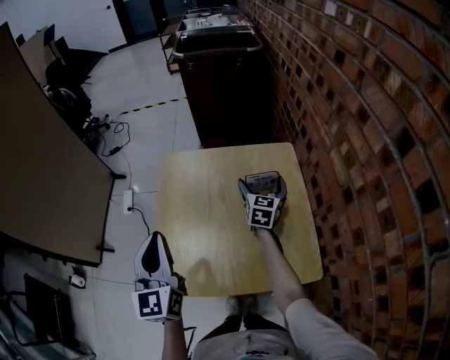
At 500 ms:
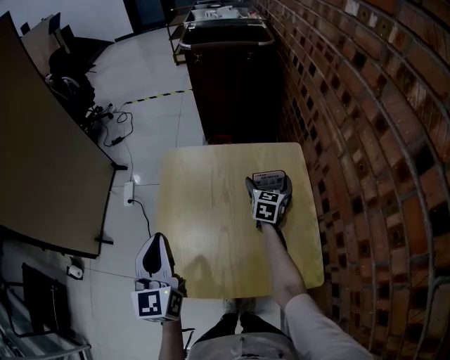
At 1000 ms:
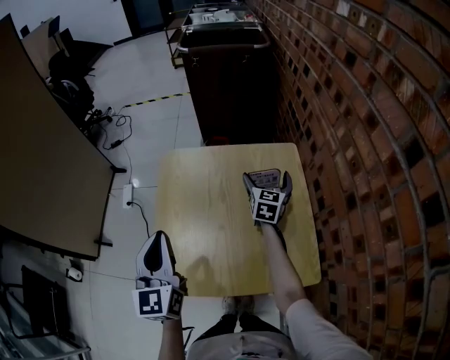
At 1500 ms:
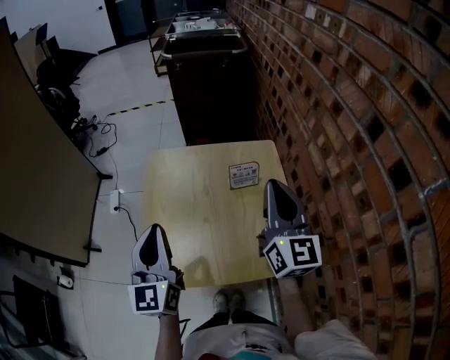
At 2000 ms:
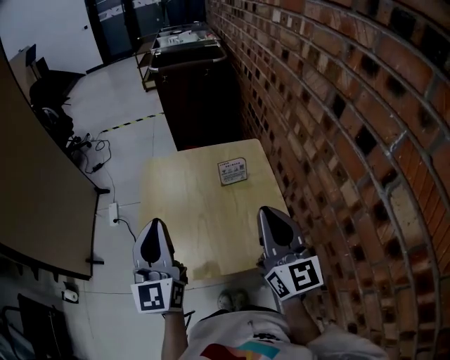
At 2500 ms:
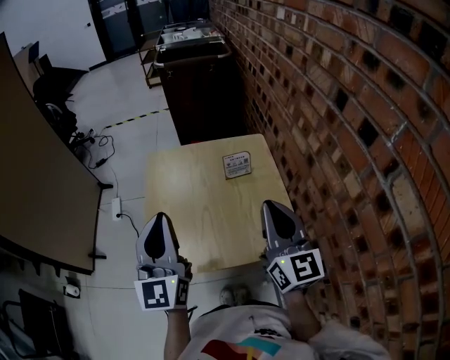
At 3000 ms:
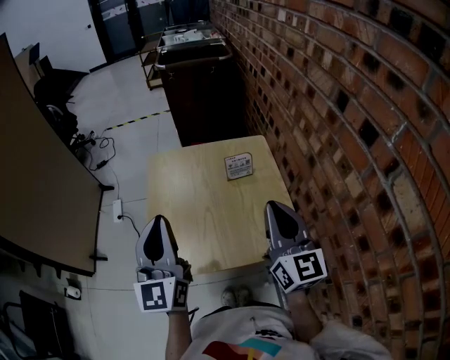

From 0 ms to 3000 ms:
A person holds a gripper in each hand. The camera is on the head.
From 0 ms to 1500 ms: The right gripper travels upward and backward by approximately 30 cm, turns by approximately 30 degrees, and closes its fingers.
From 1500 ms to 3000 ms: The left gripper is displaced upward and backward by some 10 cm. Meanwhile the right gripper goes approximately 10 cm backward.

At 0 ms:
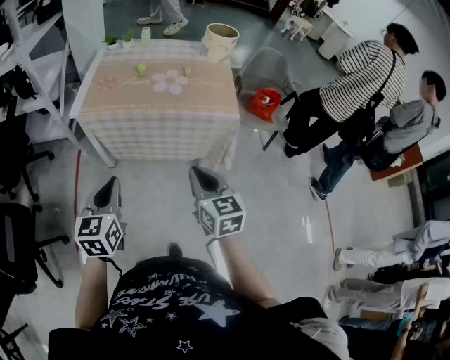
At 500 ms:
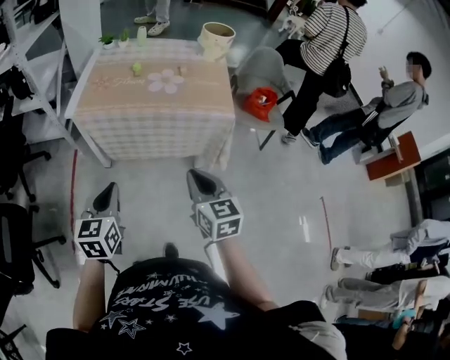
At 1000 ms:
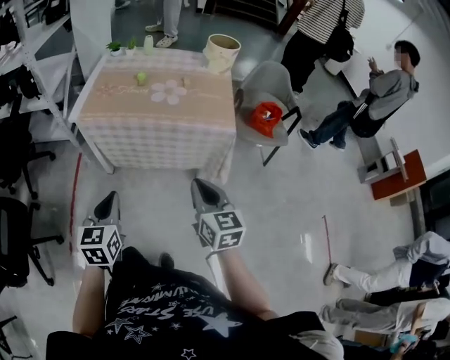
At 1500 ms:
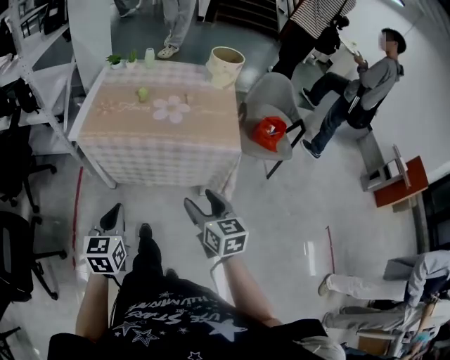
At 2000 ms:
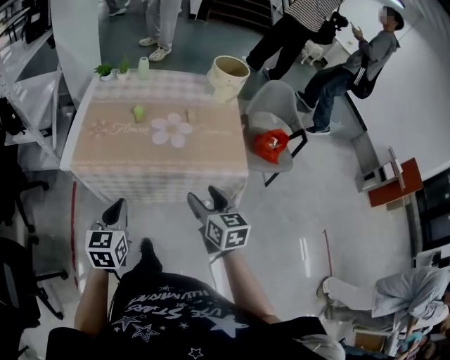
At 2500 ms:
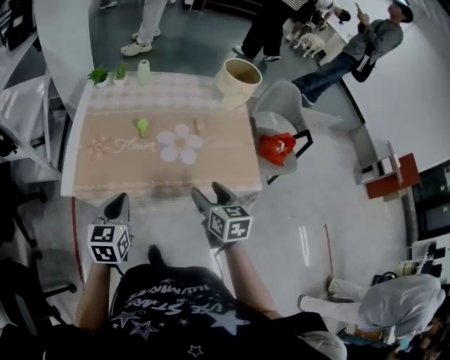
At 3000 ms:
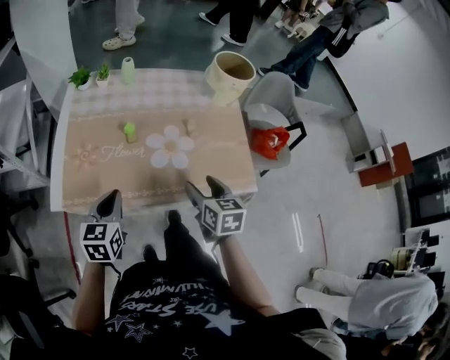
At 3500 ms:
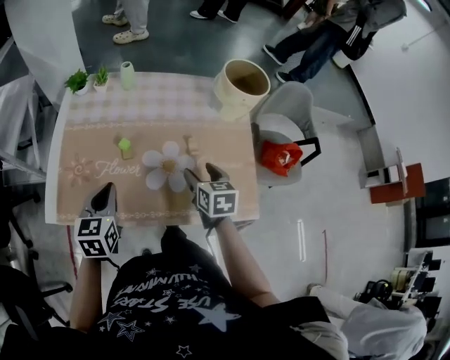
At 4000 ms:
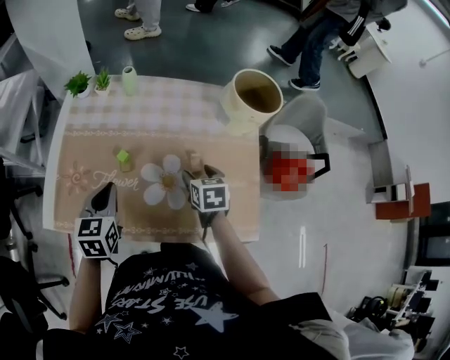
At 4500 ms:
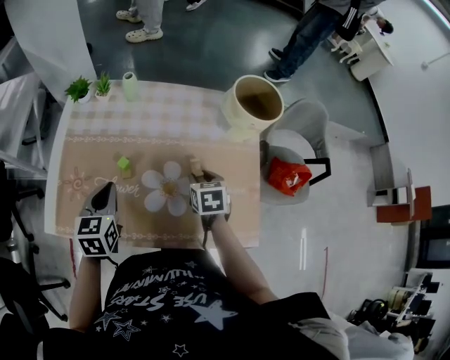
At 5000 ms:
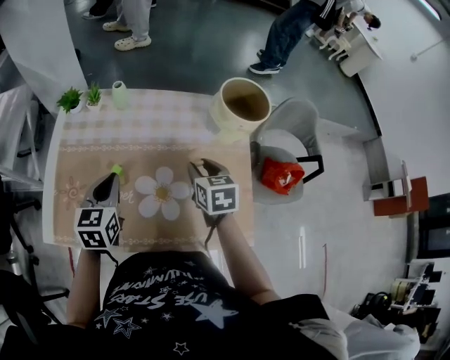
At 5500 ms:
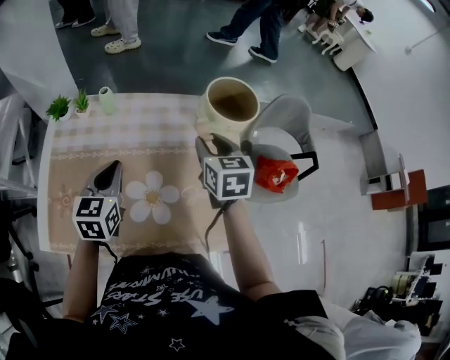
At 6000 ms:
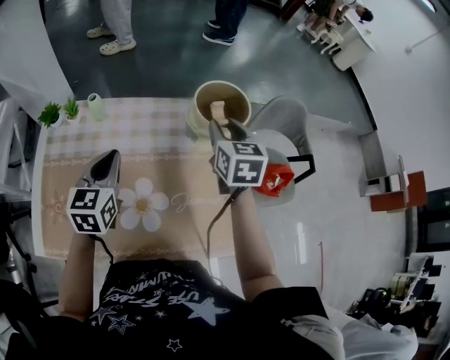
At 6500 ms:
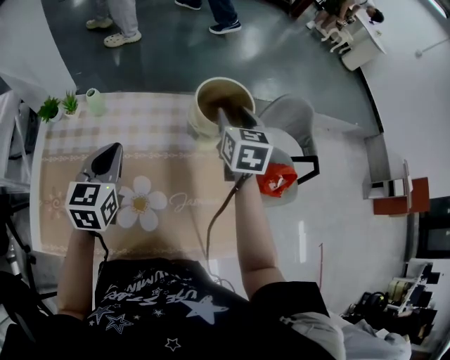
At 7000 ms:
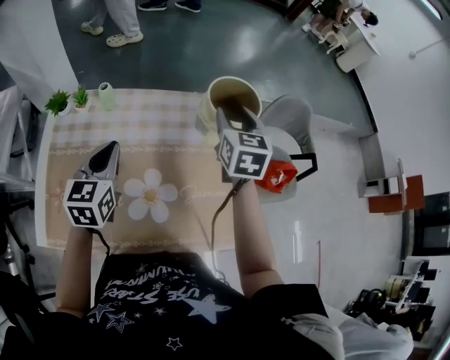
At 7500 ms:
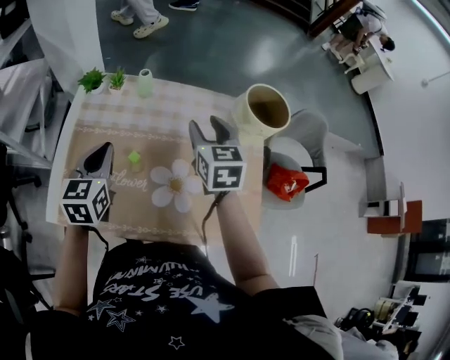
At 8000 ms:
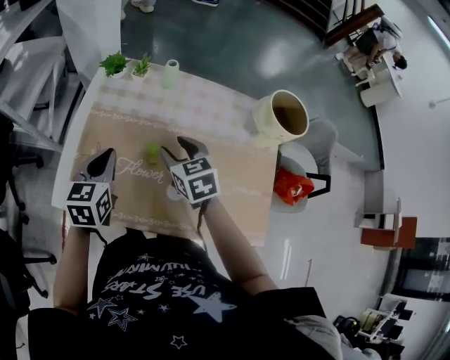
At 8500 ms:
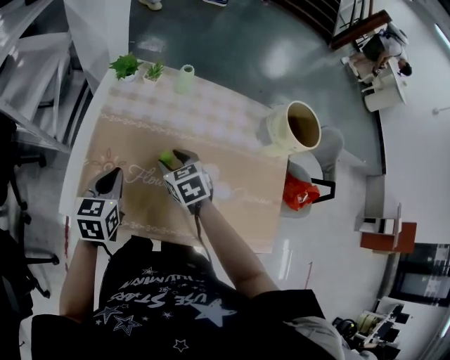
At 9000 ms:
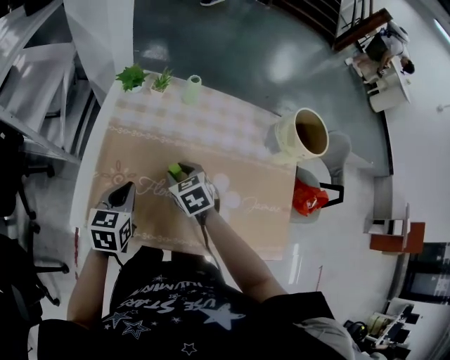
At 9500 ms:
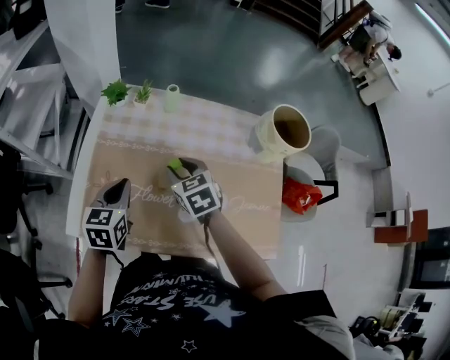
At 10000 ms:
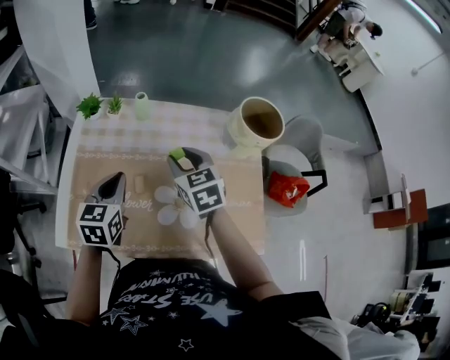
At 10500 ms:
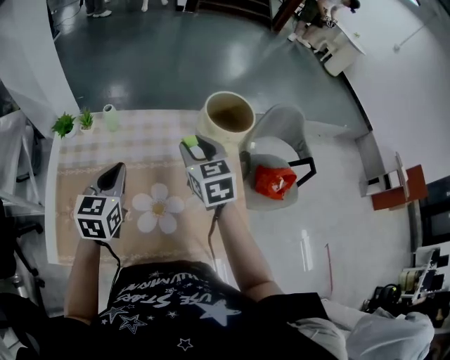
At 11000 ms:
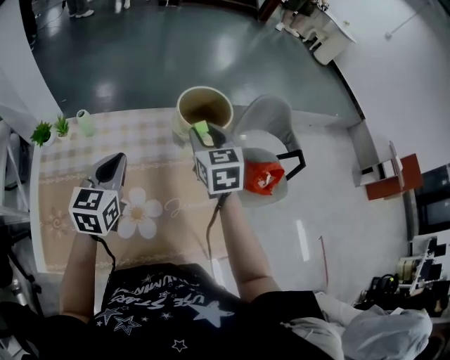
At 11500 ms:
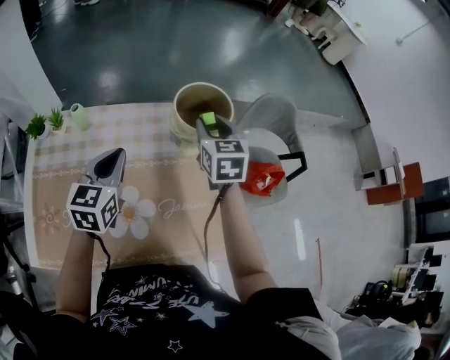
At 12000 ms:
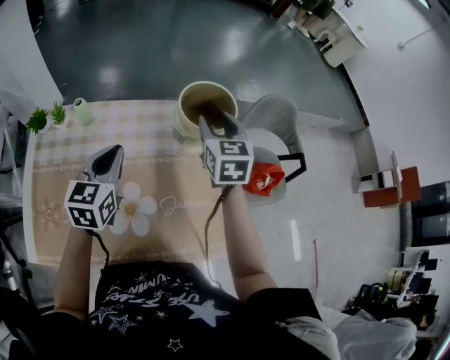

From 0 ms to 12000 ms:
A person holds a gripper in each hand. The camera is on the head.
From 0 ms to 2000 ms: Both grippers travel together forward, about 20 cm. The right gripper opens up.
From 2000 ms to 4000 ms: The two grippers go approximately 35 cm forward. The right gripper swivels some 20 degrees.
From 4000 ms to 6000 ms: The right gripper goes approximately 30 cm upward, forward and to the right, swivels roughly 20 degrees, and closes; the left gripper goes roughly 20 cm forward, to the right and upward.
From 6000 ms to 8000 ms: The right gripper shifts about 30 cm to the left, and swivels about 30 degrees, while the left gripper moves to the left and backward, some 25 cm.
From 8000 ms to 10000 ms: The left gripper is displaced to the right by about 10 cm, while the right gripper is displaced to the right and upward by about 10 cm.
From 10000 ms to 12000 ms: Both grippers travel together to the right and forward, approximately 25 cm. The right gripper rotates some 30 degrees.

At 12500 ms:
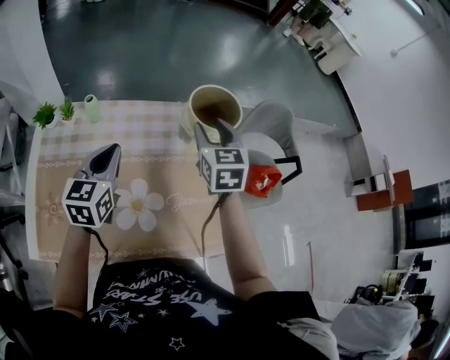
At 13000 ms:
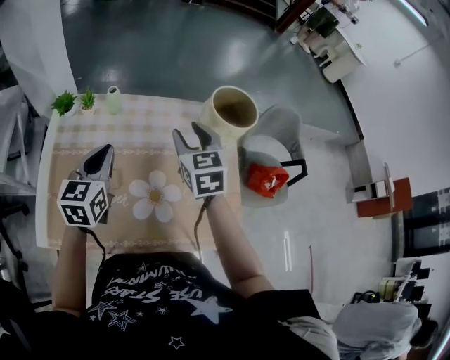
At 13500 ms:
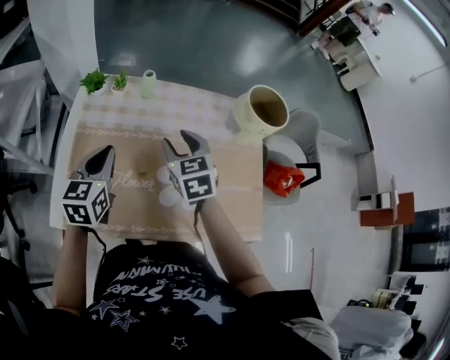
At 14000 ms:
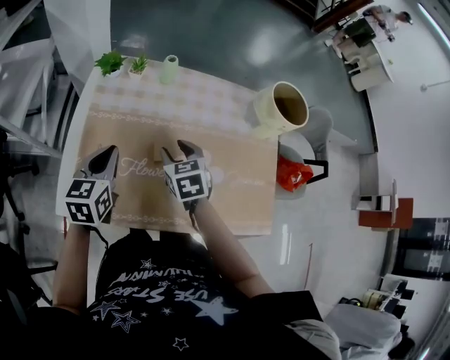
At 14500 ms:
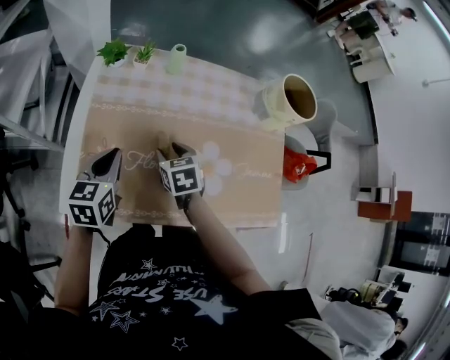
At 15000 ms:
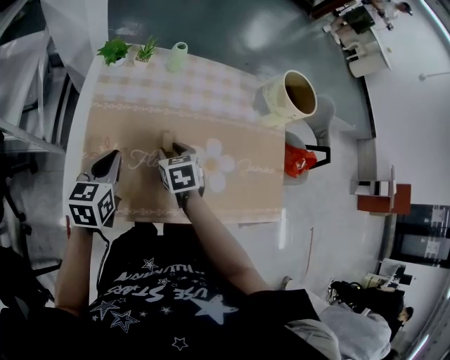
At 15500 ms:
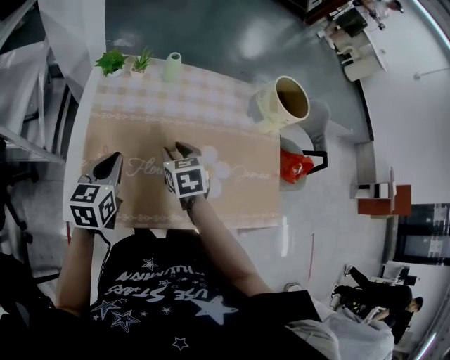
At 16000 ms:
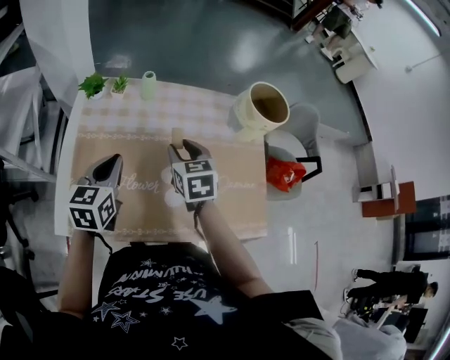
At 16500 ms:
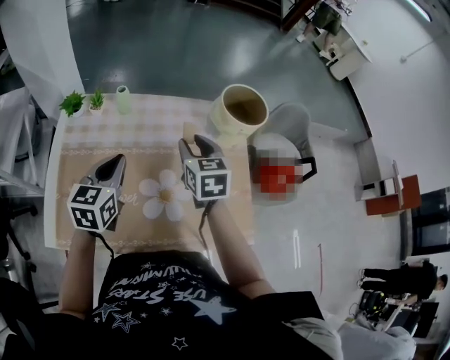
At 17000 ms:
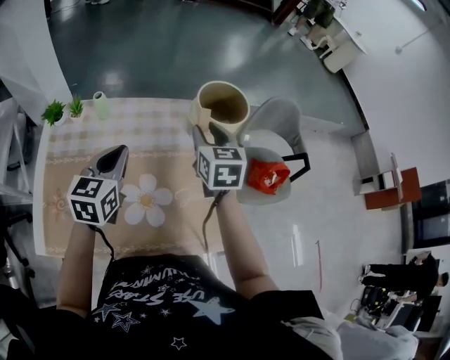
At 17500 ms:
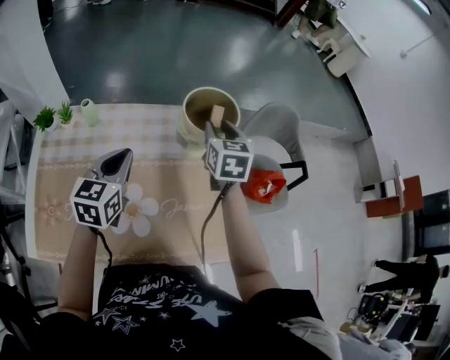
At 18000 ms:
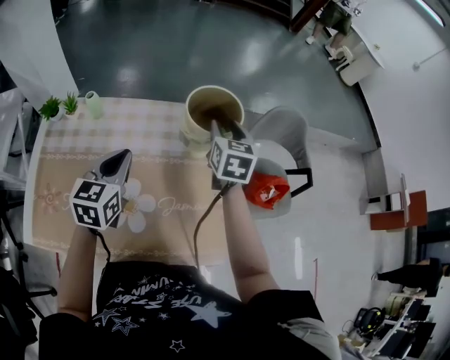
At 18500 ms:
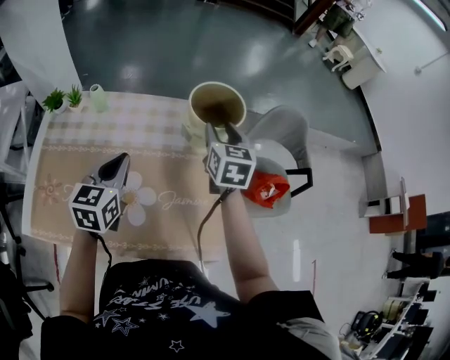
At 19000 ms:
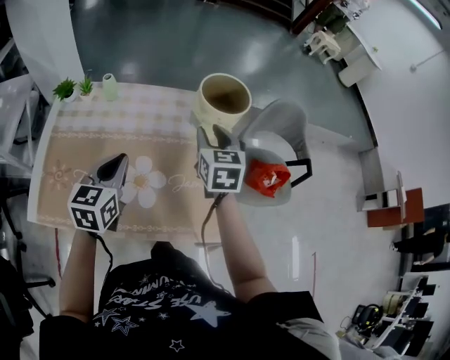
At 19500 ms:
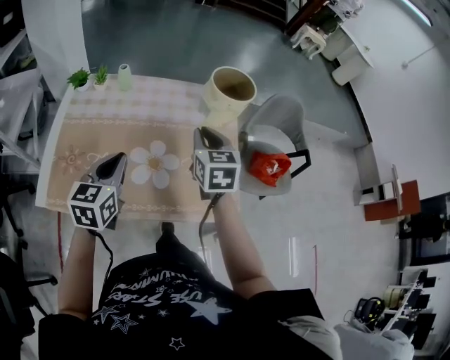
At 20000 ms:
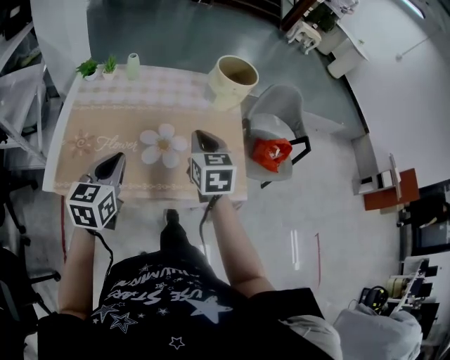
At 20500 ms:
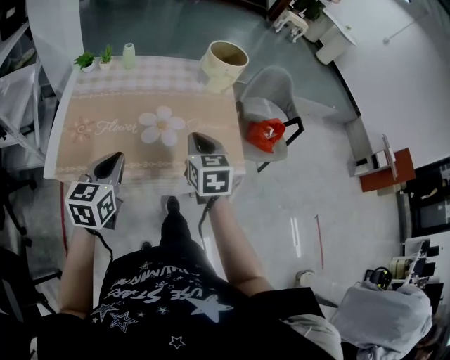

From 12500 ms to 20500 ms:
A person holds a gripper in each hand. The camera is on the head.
From 12500 ms to 14500 ms: The right gripper moves to the left and downward, approximately 40 cm, and turns by some 30 degrees. Meanwhile the left gripper shifts about 30 cm to the left, backward and downward.
From 14500 ms to 16500 ms: The left gripper heads to the right and upward, covering roughly 15 cm. Meanwhile the right gripper goes some 25 cm to the right and upward, and turns by about 20 degrees.
From 16500 ms to 18500 ms: The right gripper goes some 20 cm to the right and forward, while the left gripper shifts some 15 cm to the right.
From 18500 ms to 20500 ms: Both grippers move backward, roughly 30 cm. The right gripper closes its fingers.

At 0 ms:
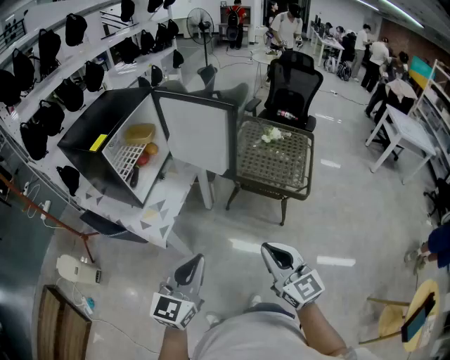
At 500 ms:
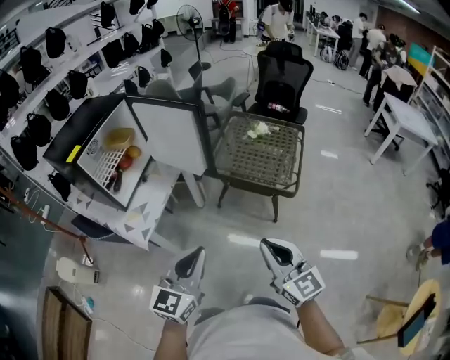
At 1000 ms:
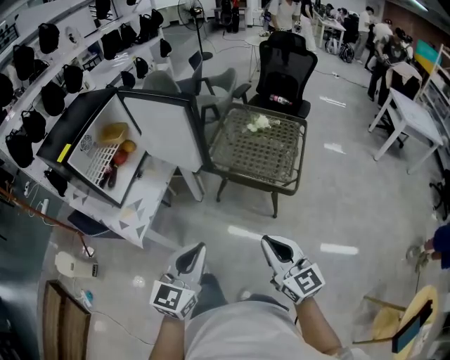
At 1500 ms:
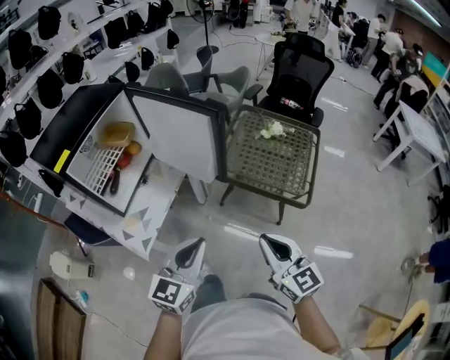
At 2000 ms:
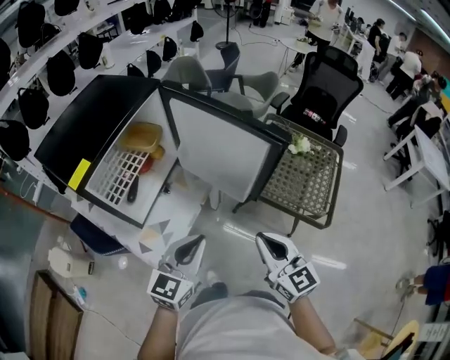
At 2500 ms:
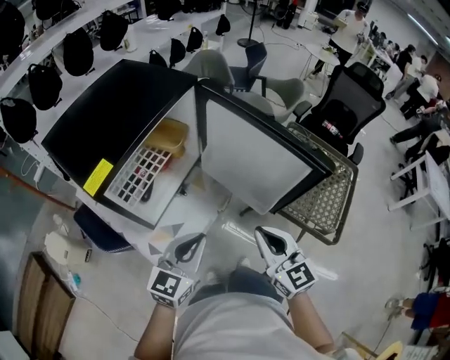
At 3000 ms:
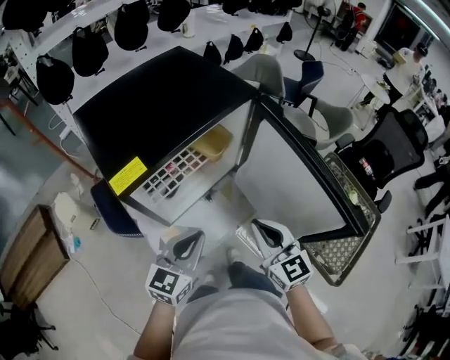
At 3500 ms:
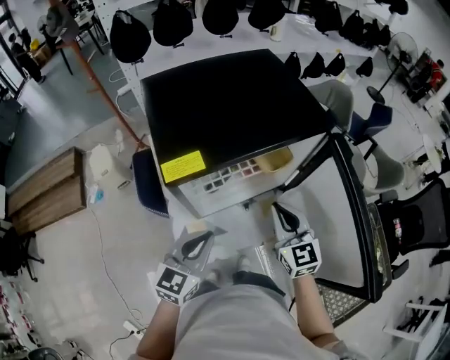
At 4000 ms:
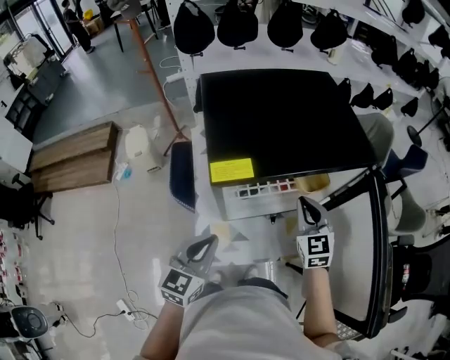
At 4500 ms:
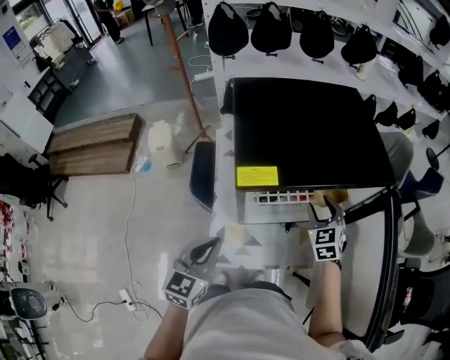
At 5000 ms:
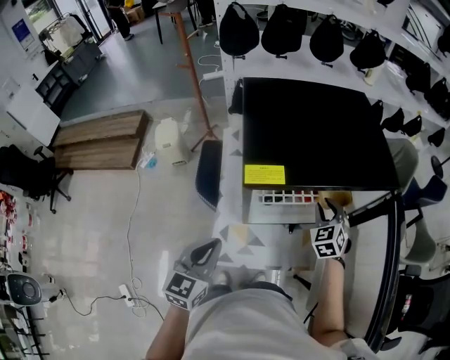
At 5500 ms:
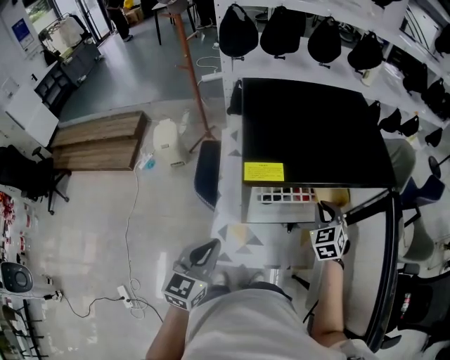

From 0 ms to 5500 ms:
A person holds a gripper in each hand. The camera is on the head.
From 0 ms to 2000 ms: Both grippers move forward, about 30 cm.
From 2000 ms to 3500 ms: The right gripper changes place by about 35 cm, and rotates roughly 40 degrees. Meanwhile the left gripper moves some 20 cm, and turns by roughly 40 degrees.
From 3500 ms to 5500 ms: The left gripper moves to the left, about 10 cm, and rotates approximately 30 degrees; the right gripper moves forward and downward, approximately 15 cm, changes its angle by about 30 degrees, and opens, then closes again.
